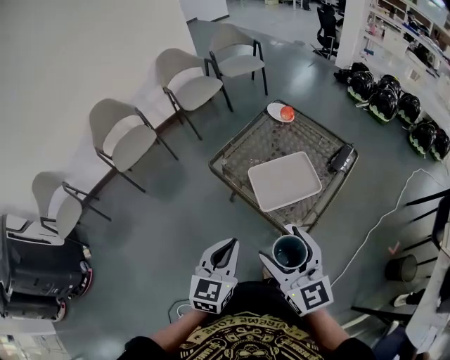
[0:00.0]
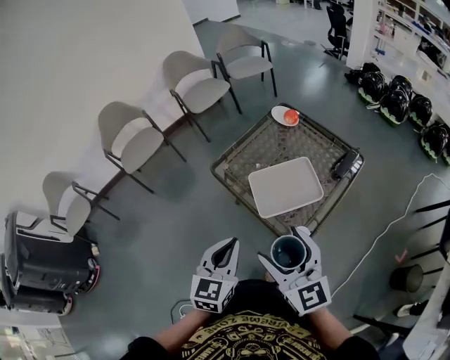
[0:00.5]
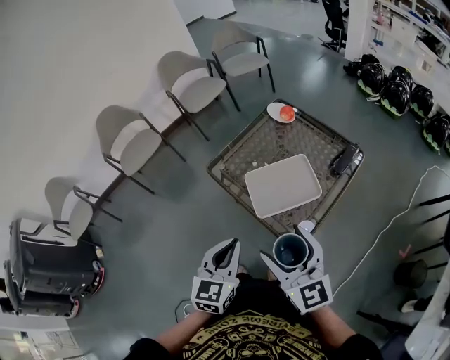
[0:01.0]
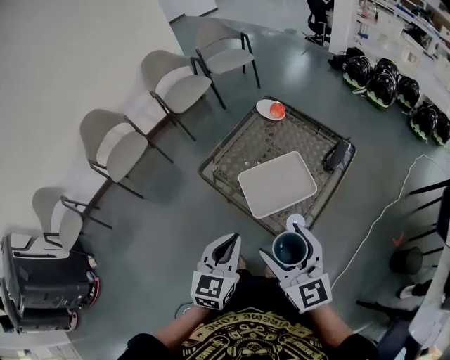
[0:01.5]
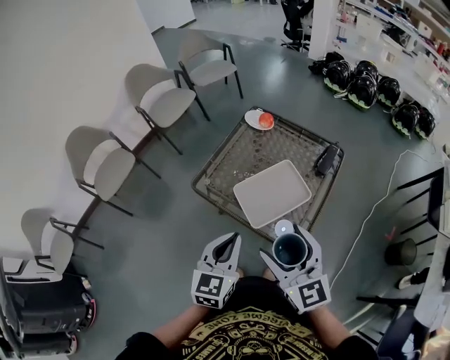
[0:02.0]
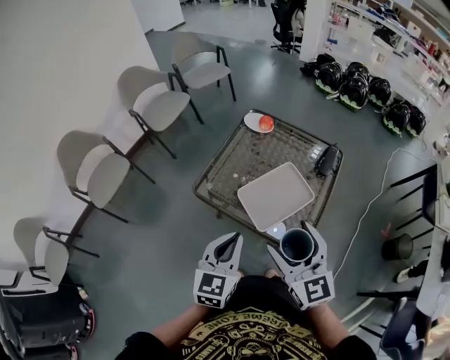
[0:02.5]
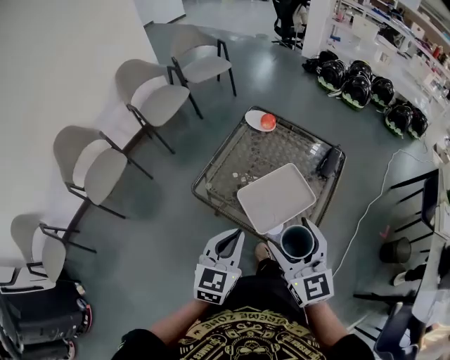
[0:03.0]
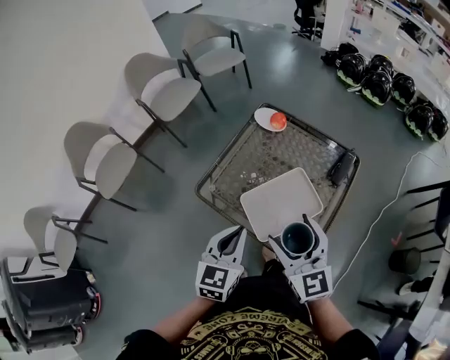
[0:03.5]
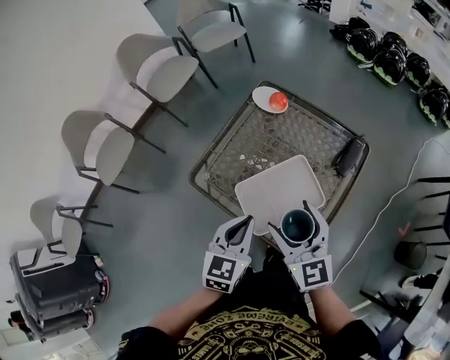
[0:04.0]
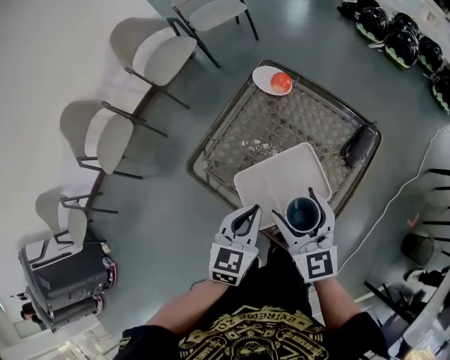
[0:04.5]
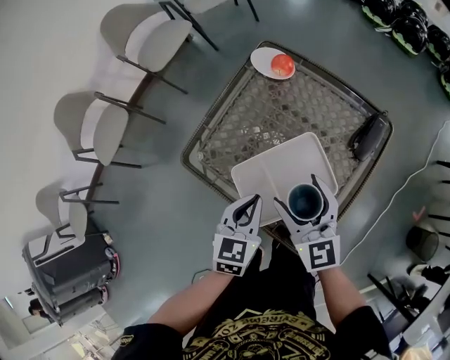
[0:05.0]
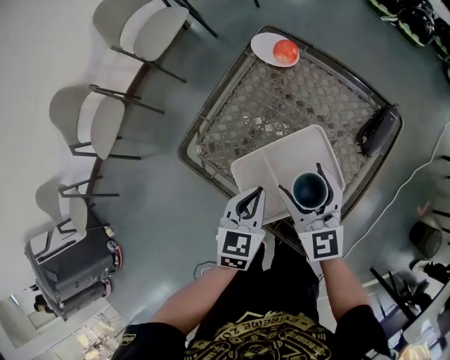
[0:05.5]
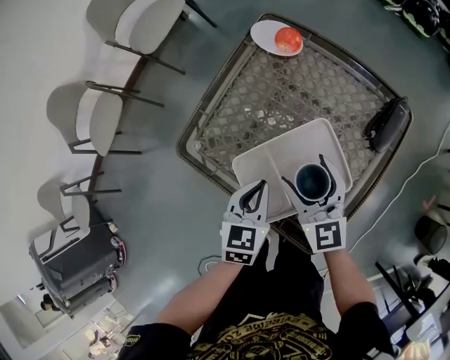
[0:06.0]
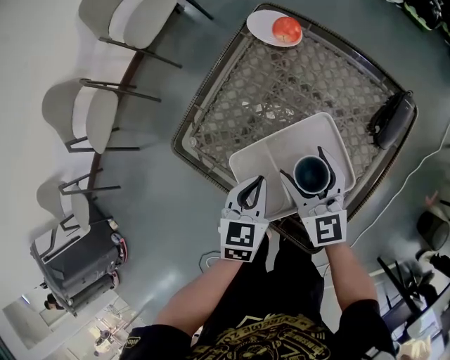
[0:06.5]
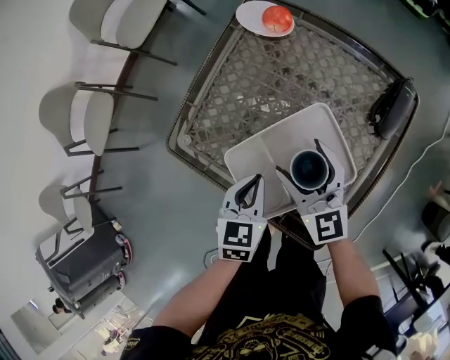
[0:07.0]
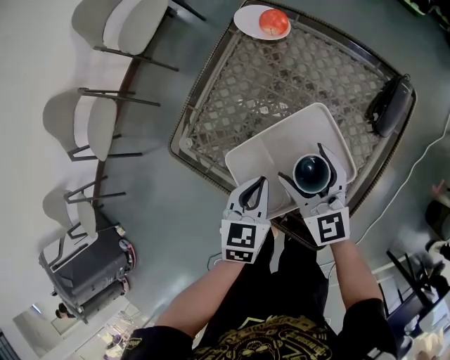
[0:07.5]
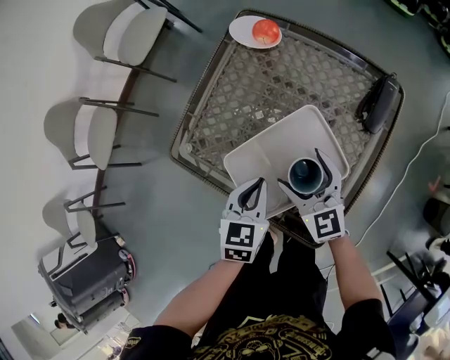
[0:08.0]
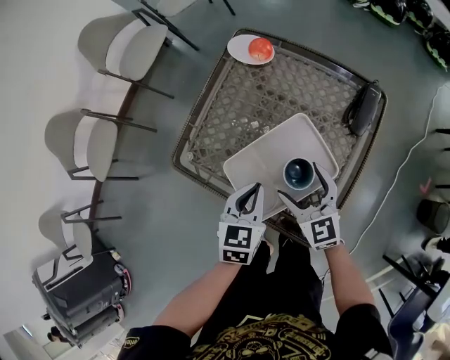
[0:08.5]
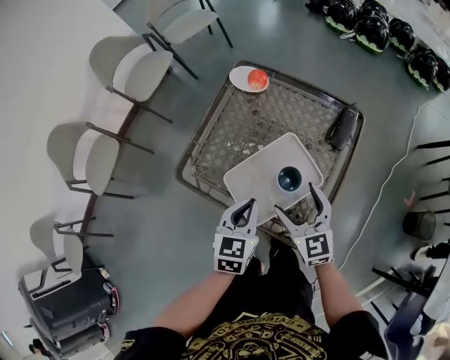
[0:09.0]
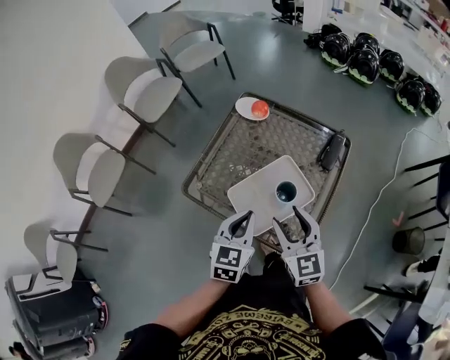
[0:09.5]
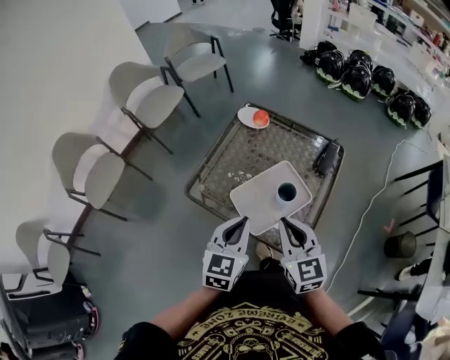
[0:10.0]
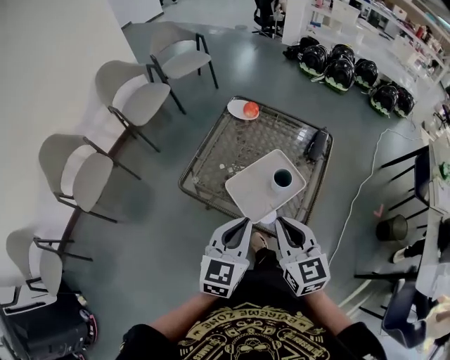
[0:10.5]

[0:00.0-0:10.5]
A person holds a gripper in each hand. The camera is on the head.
0:00.0 to 0:02.0: The grippers both shift forward by about 10 cm.
0:02.0 to 0:04.0: Both grippers travel together forward and downward, roughly 15 cm.
0:04.0 to 0:06.5: The right gripper moves downward and forward, approximately 20 cm. Meanwhile the left gripper shifts approximately 20 cm downward.
0:06.5 to 0:08.5: The right gripper travels backward by roughly 5 cm. Meanwhile the left gripper moves roughly 5 cm.
0:08.5 to 0:10.5: Both grippers move upward and backward, roughly 25 cm. The right gripper closes, while the left gripper rotates about 20 degrees.

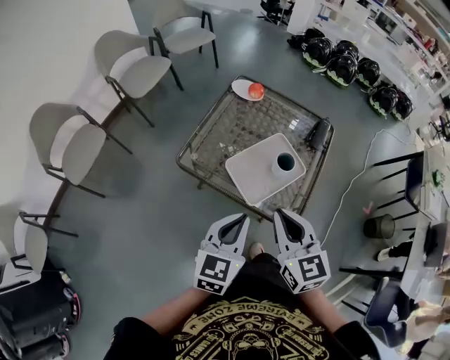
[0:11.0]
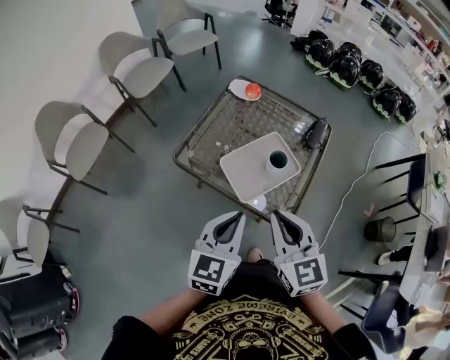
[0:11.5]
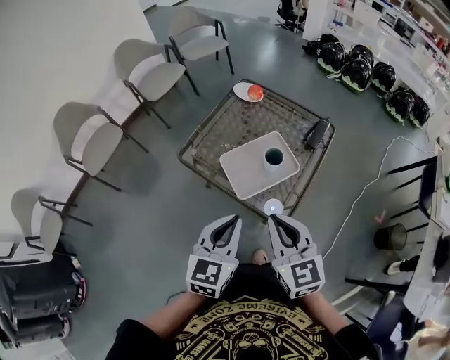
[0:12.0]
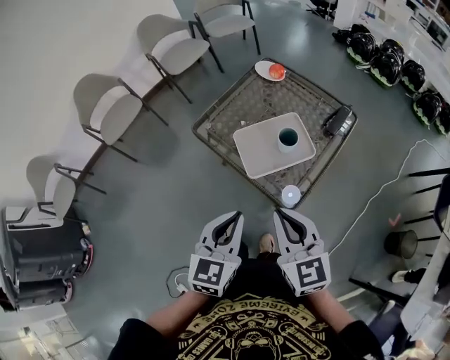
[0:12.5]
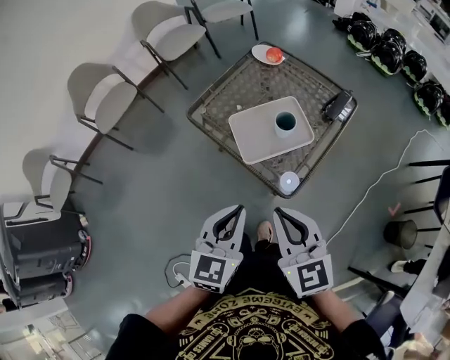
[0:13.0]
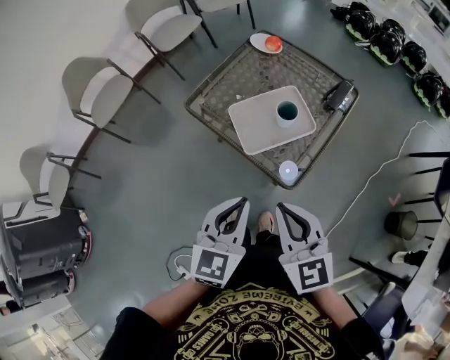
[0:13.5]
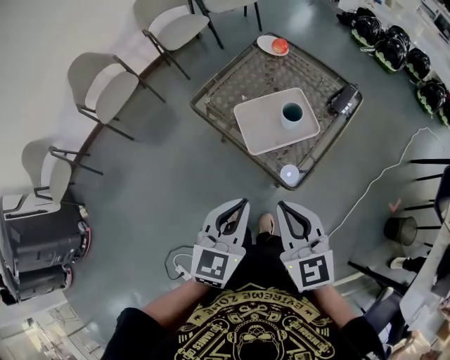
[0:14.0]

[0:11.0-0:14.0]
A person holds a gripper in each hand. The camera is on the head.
0:11.0 to 0:12.5: The left gripper shifts roughly 15 cm backward and to the right. Meanwhile the right gripper shifts approximately 15 cm to the right and backward.
0:12.5 to 0:14.0: The grippers stay close to where they were, moving slightly.

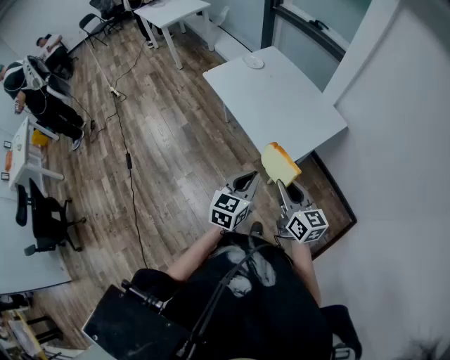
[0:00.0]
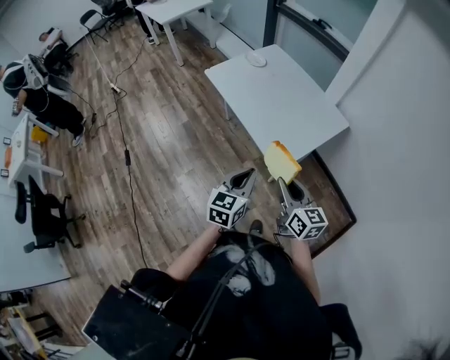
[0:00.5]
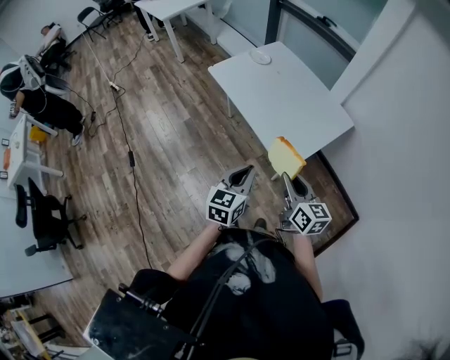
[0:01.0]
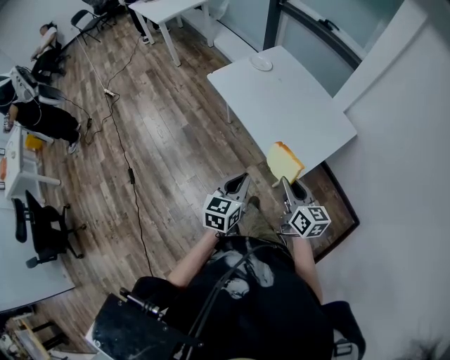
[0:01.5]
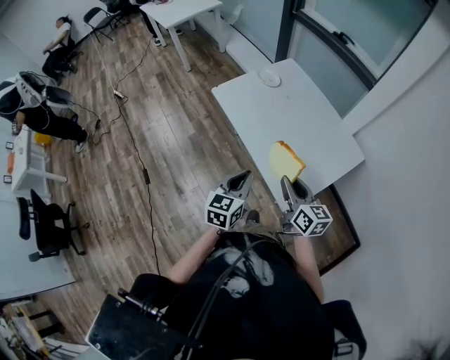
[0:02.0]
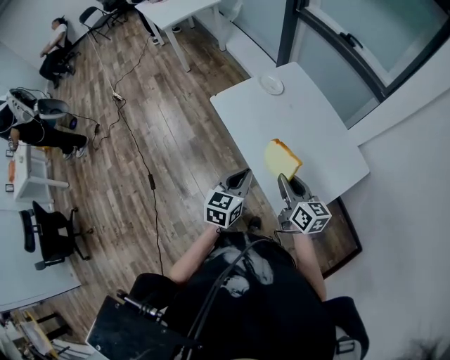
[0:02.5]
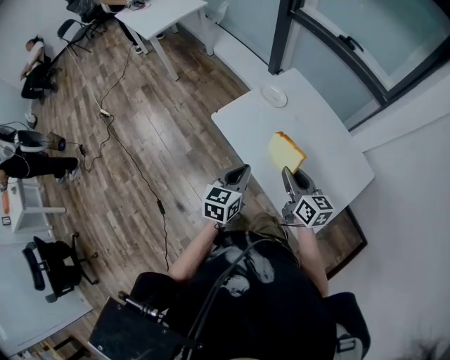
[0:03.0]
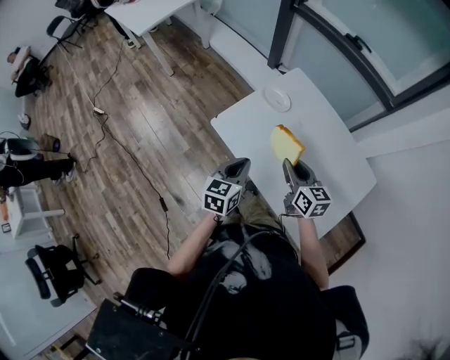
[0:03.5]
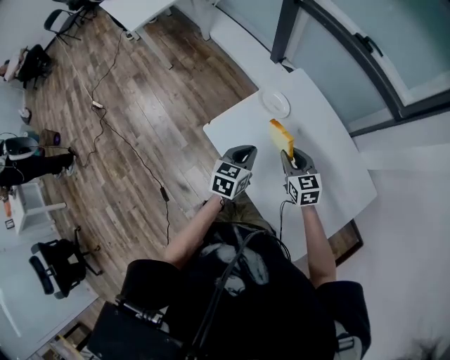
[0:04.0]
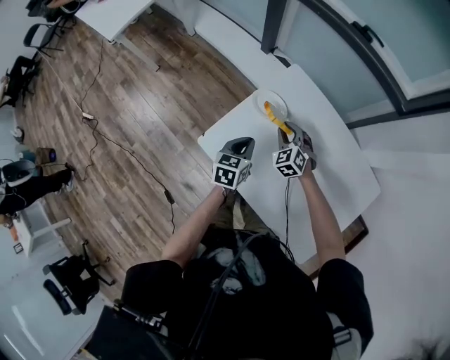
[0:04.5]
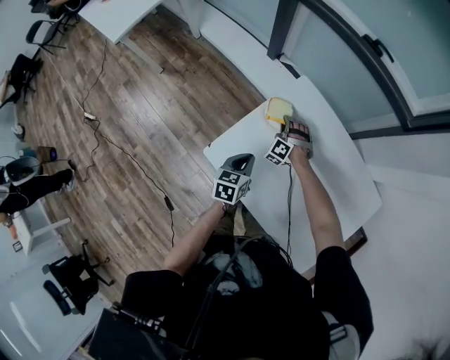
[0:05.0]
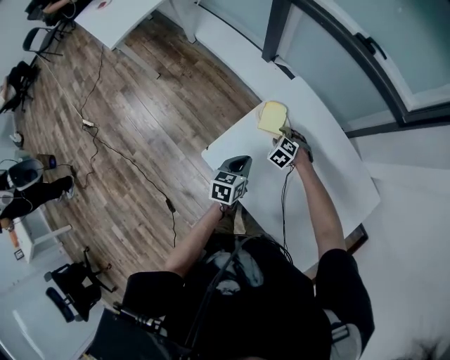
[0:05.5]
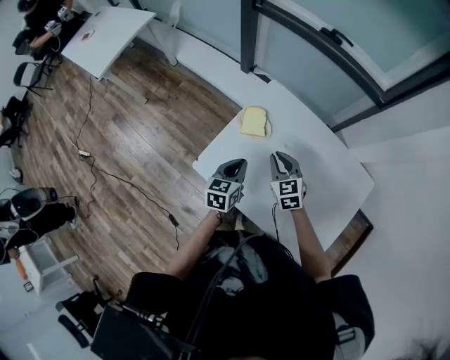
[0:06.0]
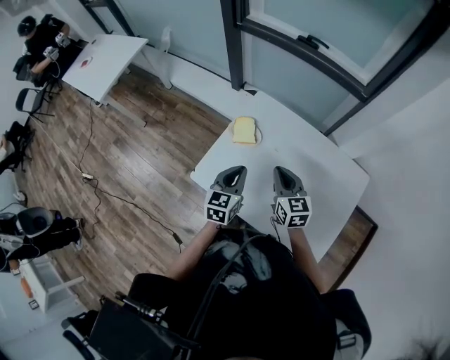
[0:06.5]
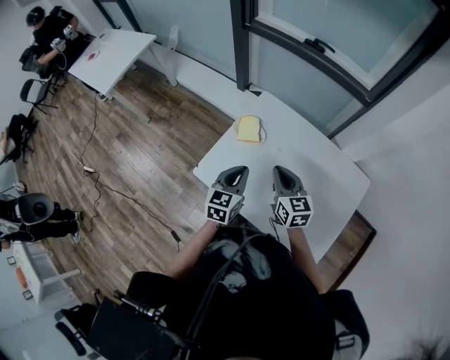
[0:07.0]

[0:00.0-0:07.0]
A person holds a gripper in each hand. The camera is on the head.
0:00.0 to 0:02.0: The grippers both shift forward by roughly 20 cm.
0:02.0 to 0:03.5: The two grippers go about 30 cm forward.
0:03.5 to 0:05.0: The left gripper shifts about 25 cm forward and downward. Meanwhile the right gripper moves forward and downward, roughly 40 cm, and rolls counterclockwise, seen from behind, by roughly 80 degrees.
0:05.0 to 0:07.0: The right gripper travels upward, backward and to the right by about 35 cm, twists about 80 degrees clockwise, seen from behind, and closes up; the left gripper travels upward and to the right by about 15 cm, and swivels roughly 20 degrees.

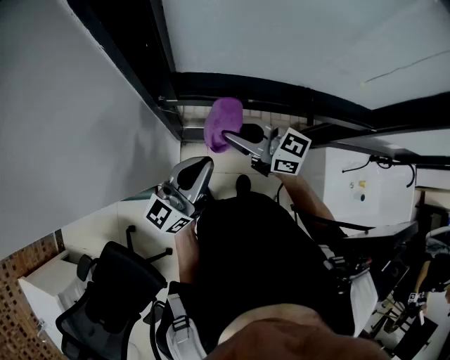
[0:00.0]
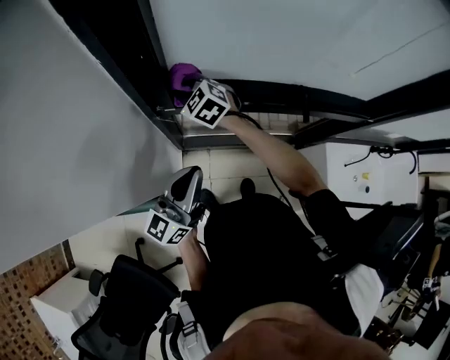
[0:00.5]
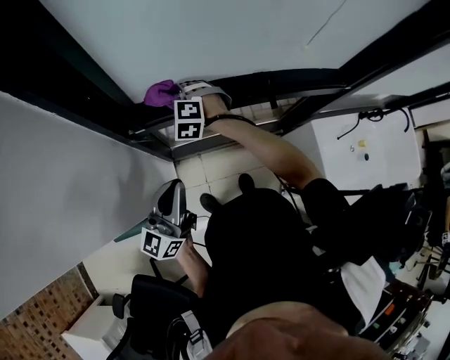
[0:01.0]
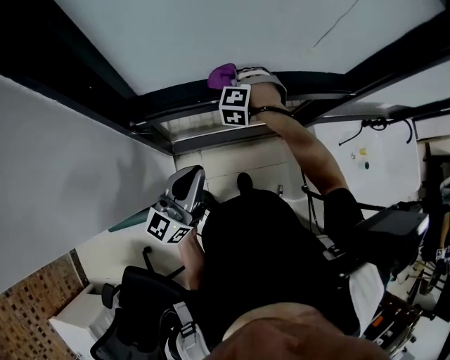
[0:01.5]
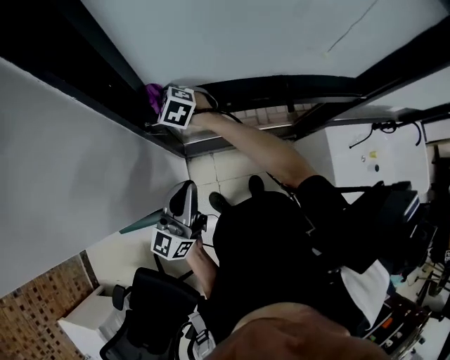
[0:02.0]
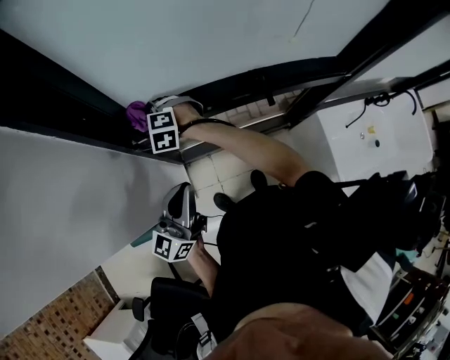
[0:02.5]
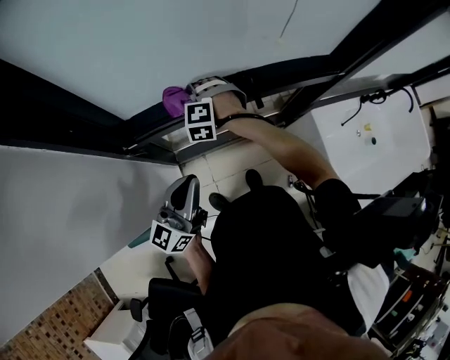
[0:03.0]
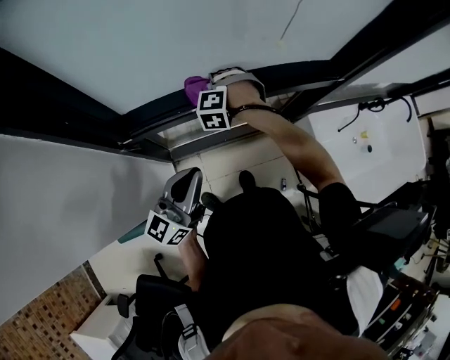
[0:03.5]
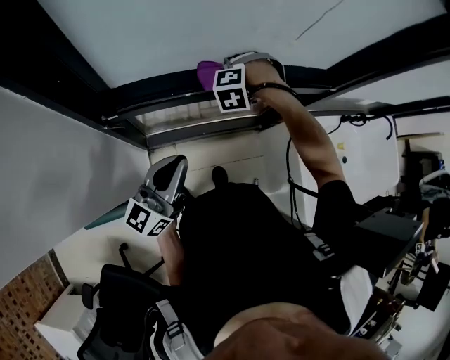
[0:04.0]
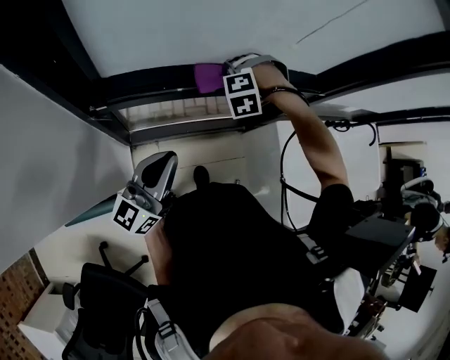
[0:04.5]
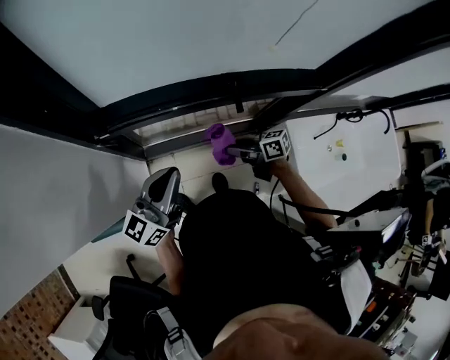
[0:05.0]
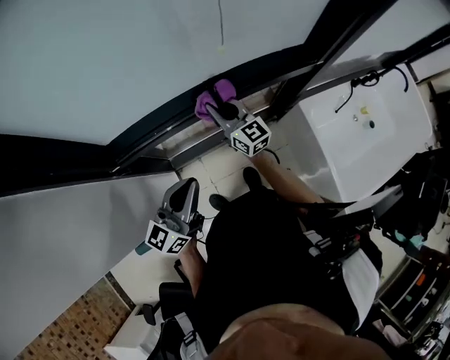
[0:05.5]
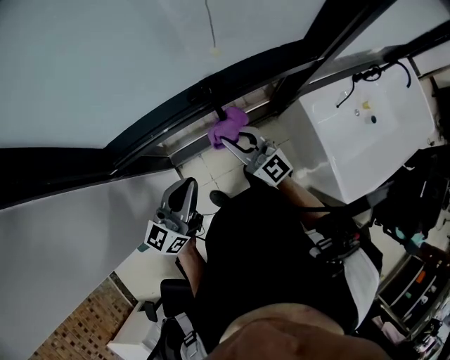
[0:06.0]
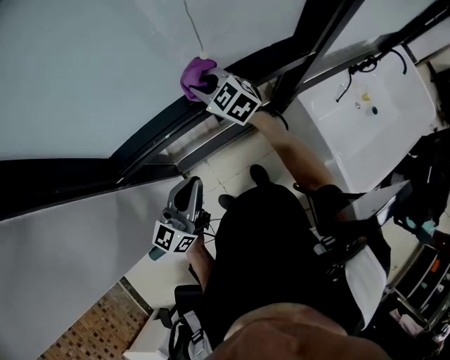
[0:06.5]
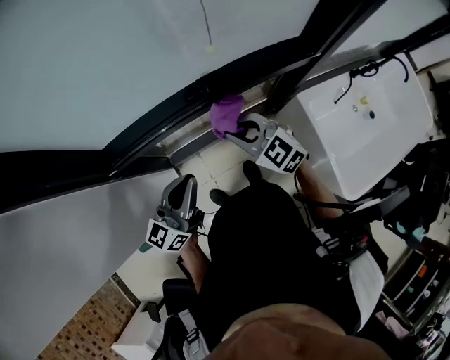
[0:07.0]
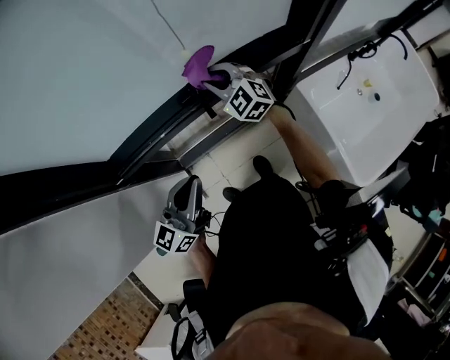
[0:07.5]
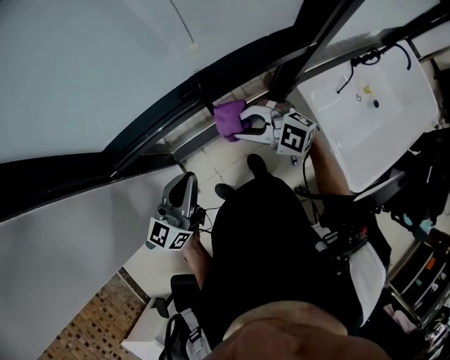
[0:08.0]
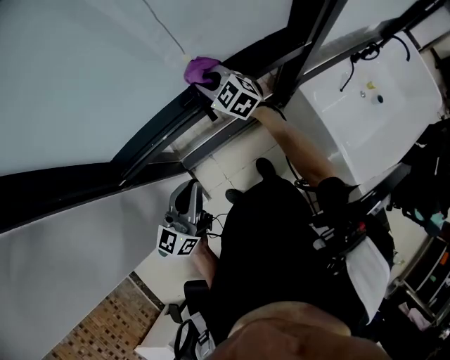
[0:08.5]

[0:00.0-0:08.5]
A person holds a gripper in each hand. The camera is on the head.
0:00.0 to 0:02.0: The right gripper ends up about 25 cm from where it was, and angles its fingers downward, by some 40 degrees.
0:02.0 to 0:04.0: The right gripper moves approximately 35 cm, and turns by about 60 degrees, while the left gripper moves approximately 10 cm.
0:04.0 to 0:06.5: The right gripper shifts approximately 10 cm upward, and points its fingers some 40 degrees further upward, while the left gripper moves roughly 10 cm.
0:06.5 to 0:08.5: The right gripper swings forward and backward, approximately 20 cm each way, with 3 reversals.